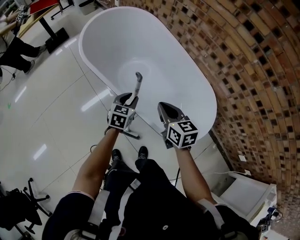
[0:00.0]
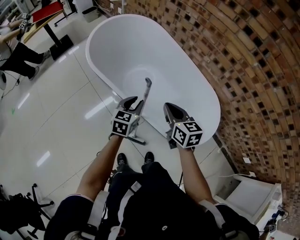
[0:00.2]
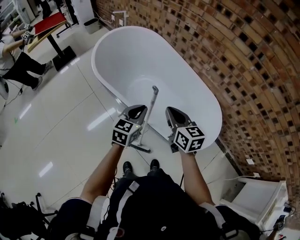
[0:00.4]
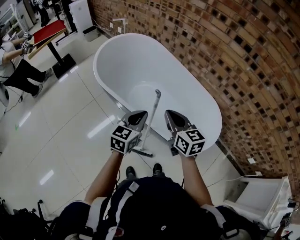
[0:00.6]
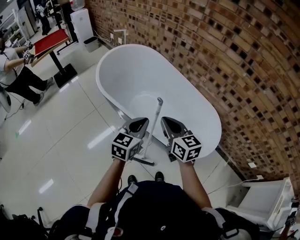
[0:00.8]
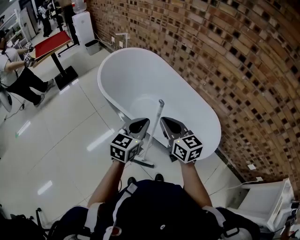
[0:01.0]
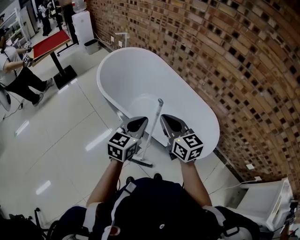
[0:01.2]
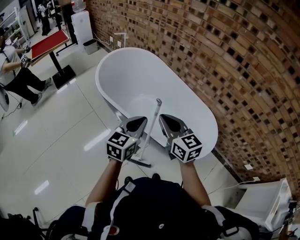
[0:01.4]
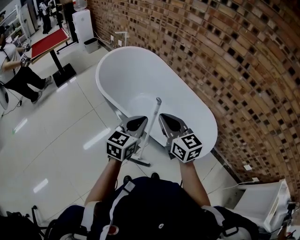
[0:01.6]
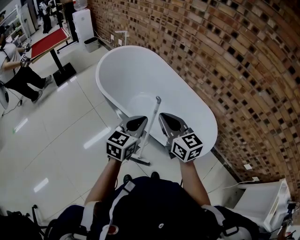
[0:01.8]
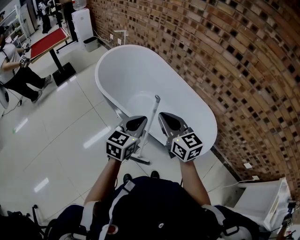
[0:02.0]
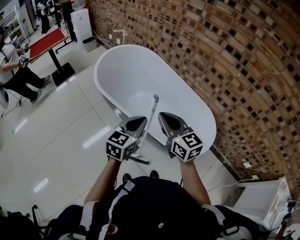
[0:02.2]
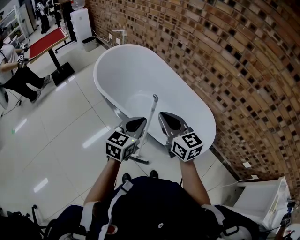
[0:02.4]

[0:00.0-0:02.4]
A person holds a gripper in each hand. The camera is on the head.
0:00.0 to 0:01.2: The right gripper shifts approximately 20 cm upward and to the left, while the left gripper shifts some 25 cm upward and backward, swivels some 30 degrees, and closes.
0:01.2 to 0:02.4: The grippers make only small movements.

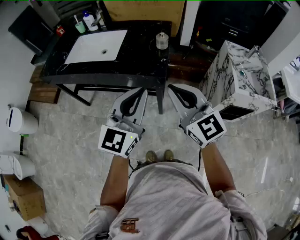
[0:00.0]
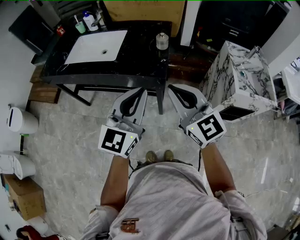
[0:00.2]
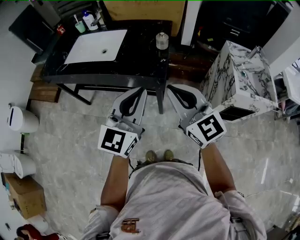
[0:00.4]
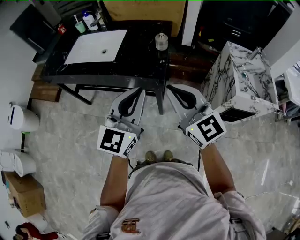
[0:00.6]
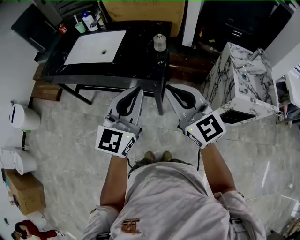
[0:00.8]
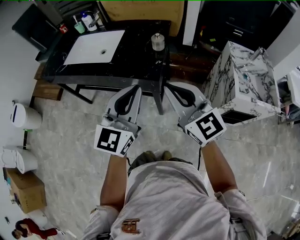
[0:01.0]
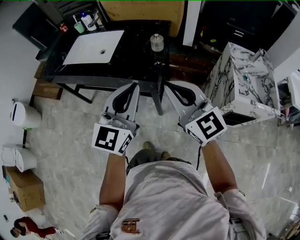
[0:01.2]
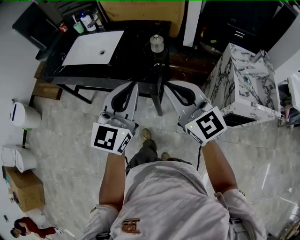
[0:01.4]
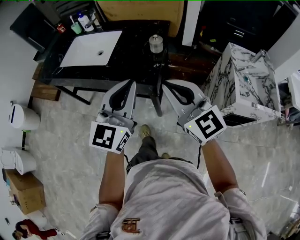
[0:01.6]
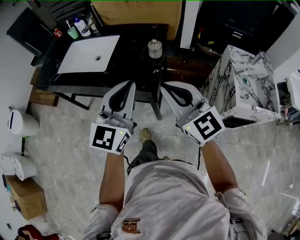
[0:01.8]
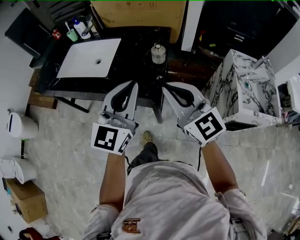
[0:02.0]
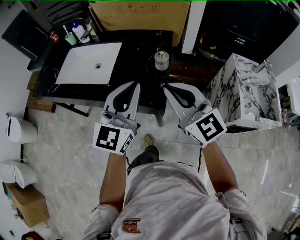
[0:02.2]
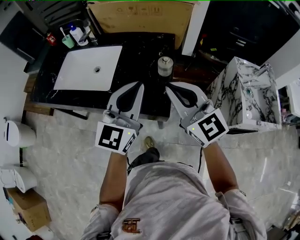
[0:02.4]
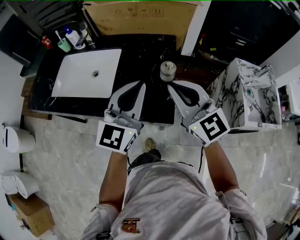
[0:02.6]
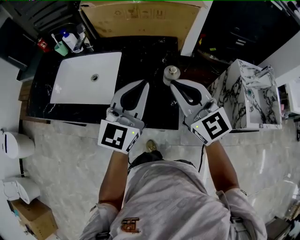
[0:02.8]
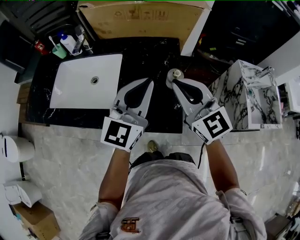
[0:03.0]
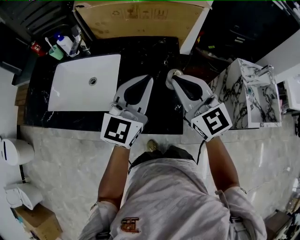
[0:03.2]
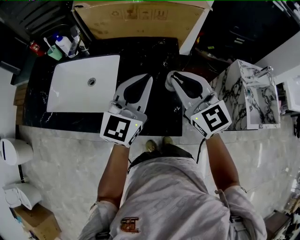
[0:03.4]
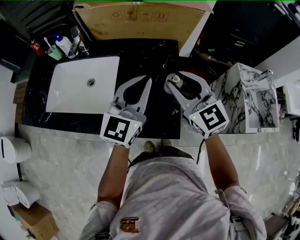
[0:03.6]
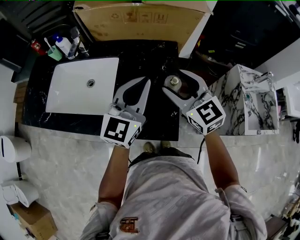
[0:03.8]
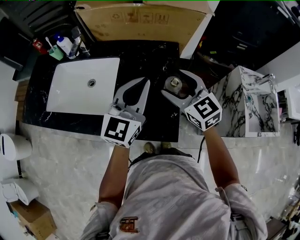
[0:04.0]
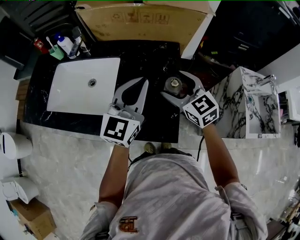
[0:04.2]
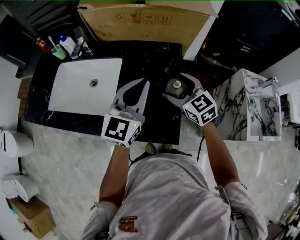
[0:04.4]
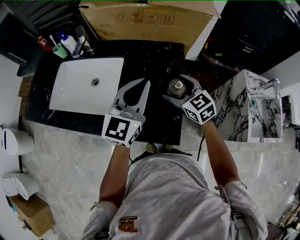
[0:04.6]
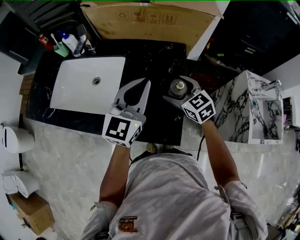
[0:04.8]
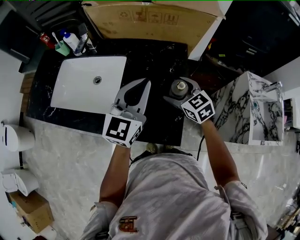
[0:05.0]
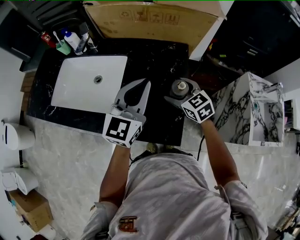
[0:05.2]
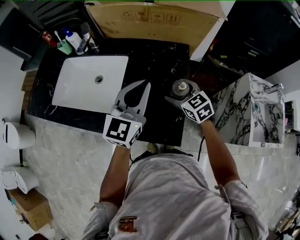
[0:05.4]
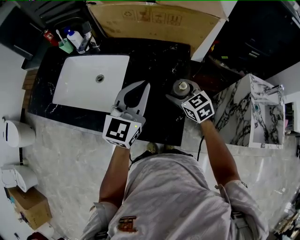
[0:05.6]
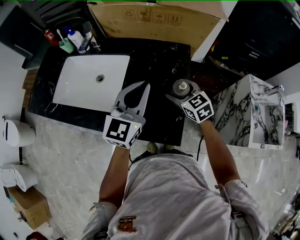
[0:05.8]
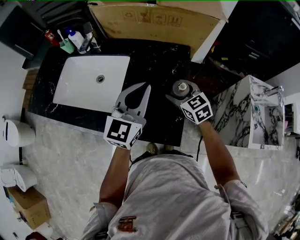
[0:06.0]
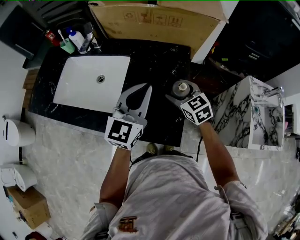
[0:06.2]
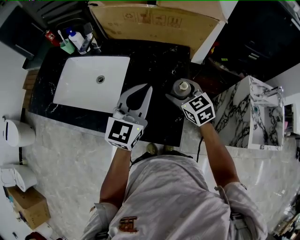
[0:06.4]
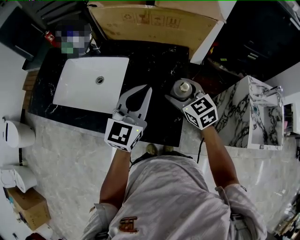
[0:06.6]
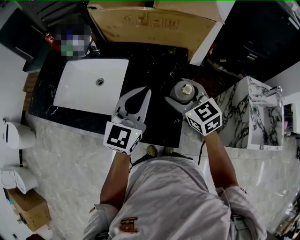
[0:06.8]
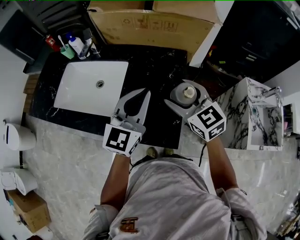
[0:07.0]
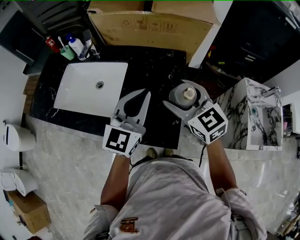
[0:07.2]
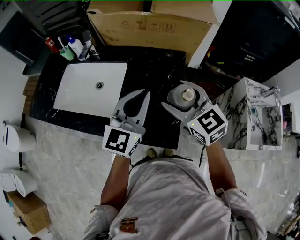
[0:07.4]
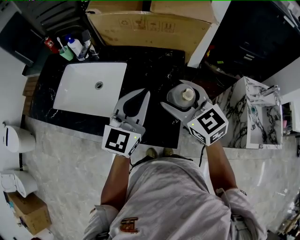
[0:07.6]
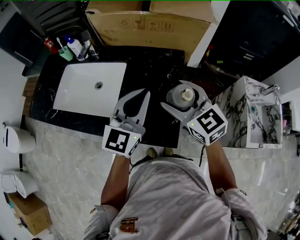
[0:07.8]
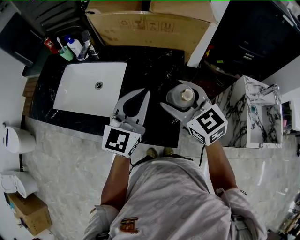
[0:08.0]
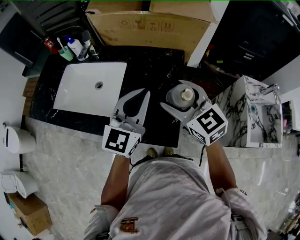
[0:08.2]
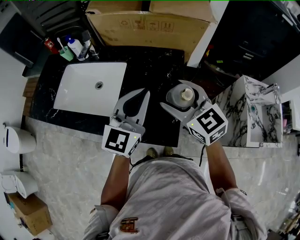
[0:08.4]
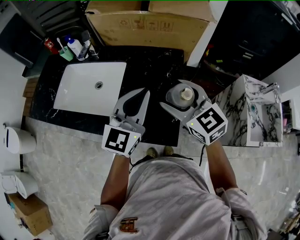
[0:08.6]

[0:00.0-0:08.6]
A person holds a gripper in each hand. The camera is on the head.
0:00.0 to 0:01.4: The left gripper shifts some 5 cm forward, while the right gripper heads to the right, covering roughly 5 cm.
0:01.4 to 0:02.8: The grippers both shift forward by roughly 25 cm.
0:02.8 to 0:04.4: The right gripper travels downward and forward by approximately 20 cm, turns by some 20 degrees, and opens. The left gripper is displaced forward by some 10 cm.
0:04.4 to 0:05.8: The right gripper heads downward, covering roughly 5 cm.
0:05.8 to 0:07.2: The right gripper shifts about 15 cm upward.
0:07.2 to 0:08.6: The grippers stay close to where they were, moving slightly.

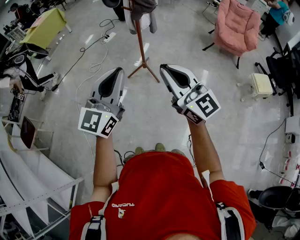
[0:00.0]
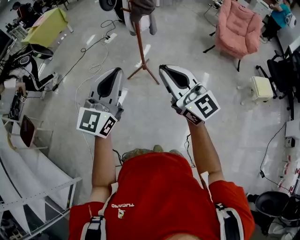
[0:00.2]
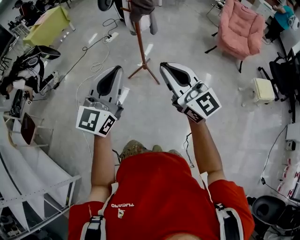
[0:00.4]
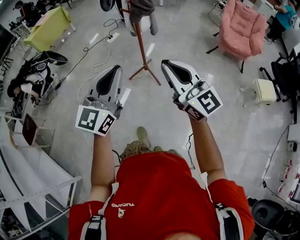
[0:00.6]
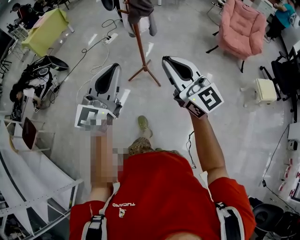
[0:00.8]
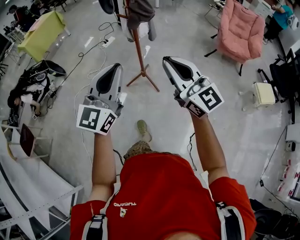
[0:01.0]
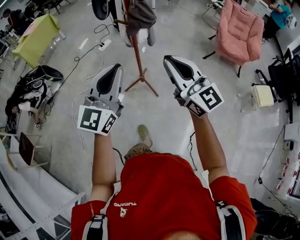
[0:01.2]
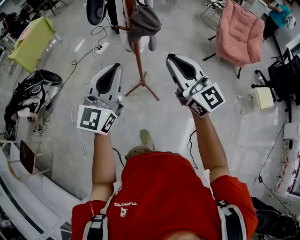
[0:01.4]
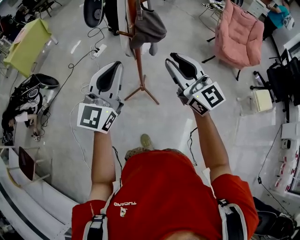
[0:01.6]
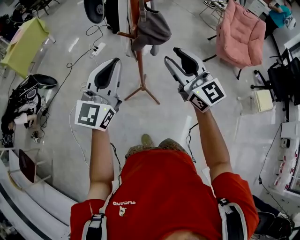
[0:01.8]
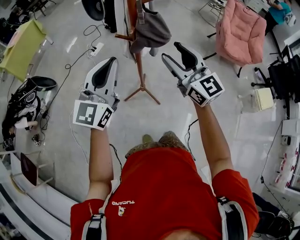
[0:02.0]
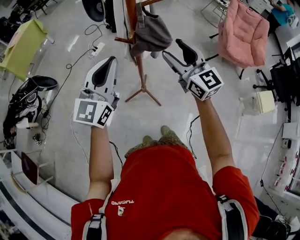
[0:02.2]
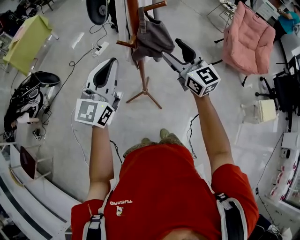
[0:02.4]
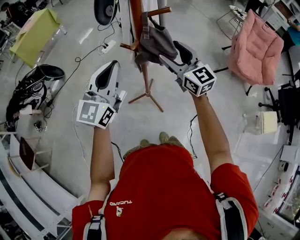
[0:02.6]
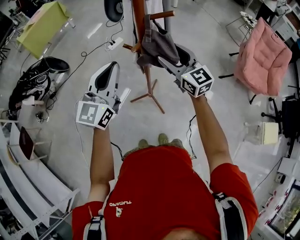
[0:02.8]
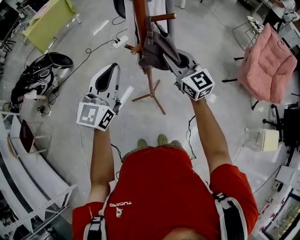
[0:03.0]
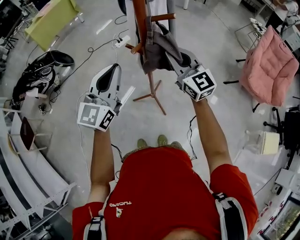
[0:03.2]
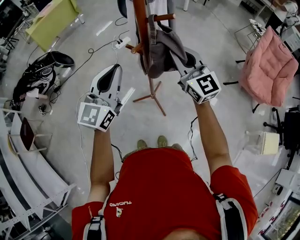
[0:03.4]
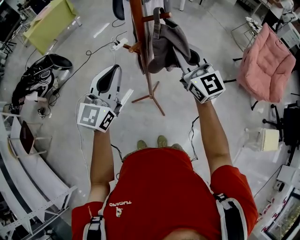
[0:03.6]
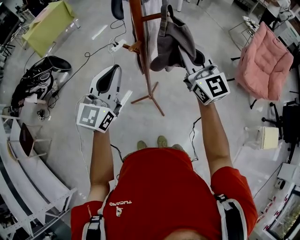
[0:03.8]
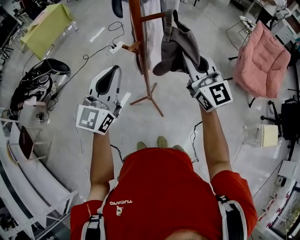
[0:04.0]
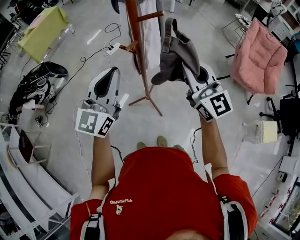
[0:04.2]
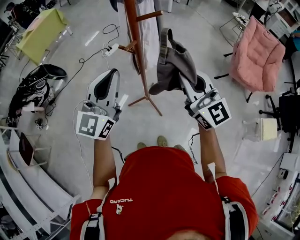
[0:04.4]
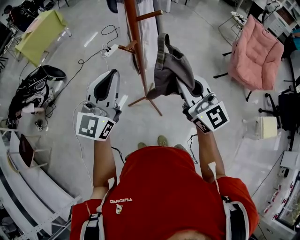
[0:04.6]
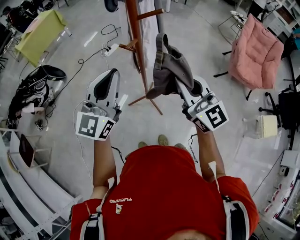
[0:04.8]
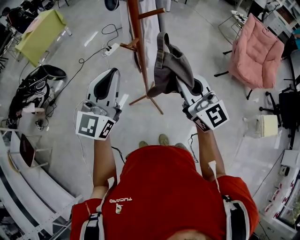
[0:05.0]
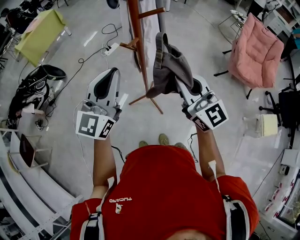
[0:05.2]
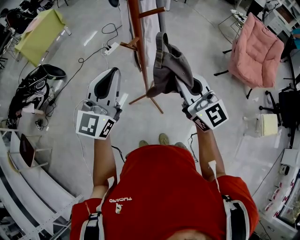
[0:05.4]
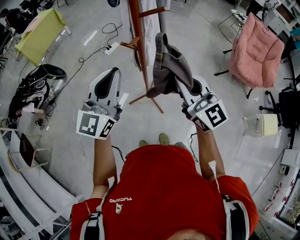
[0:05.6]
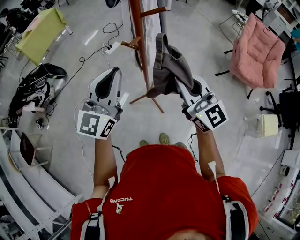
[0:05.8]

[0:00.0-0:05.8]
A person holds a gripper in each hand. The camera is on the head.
0:00.0 to 0:01.4: Both grippers move forward, approximately 30 cm.
0:01.4 to 0:02.8: Both grippers move forward, roughly 25 cm. The right gripper opens up.
0:02.8 to 0:04.4: The left gripper goes about 5 cm backward. Meanwhile the right gripper is displaced backward and upward by roughly 15 cm, and closes up.
0:04.4 to 0:05.8: The grippers stay close to where they were, moving slightly.

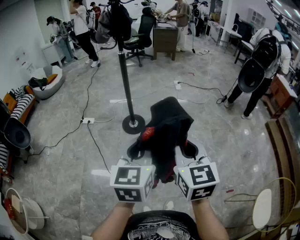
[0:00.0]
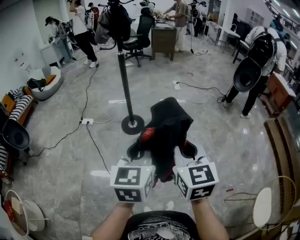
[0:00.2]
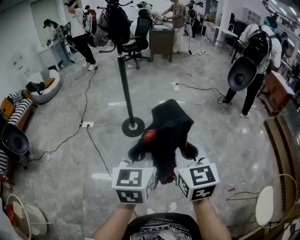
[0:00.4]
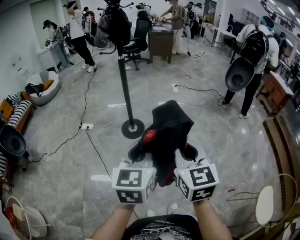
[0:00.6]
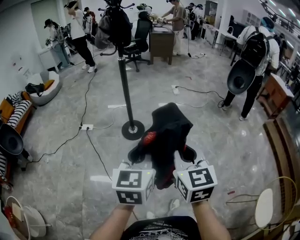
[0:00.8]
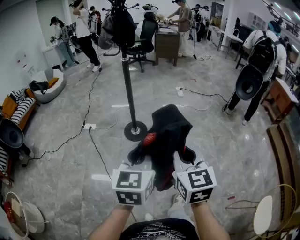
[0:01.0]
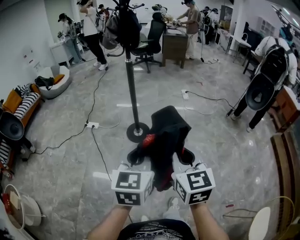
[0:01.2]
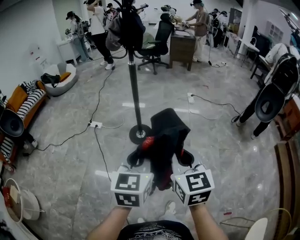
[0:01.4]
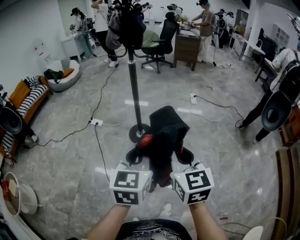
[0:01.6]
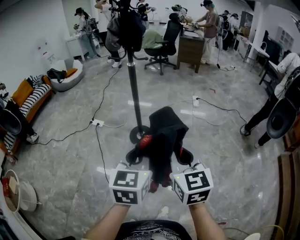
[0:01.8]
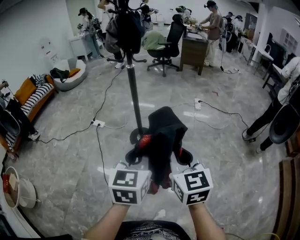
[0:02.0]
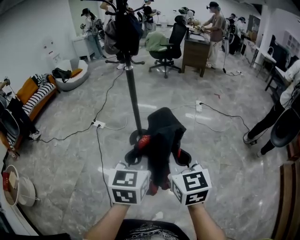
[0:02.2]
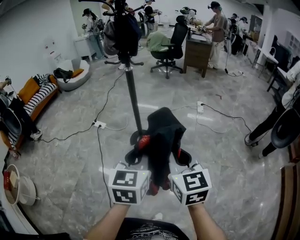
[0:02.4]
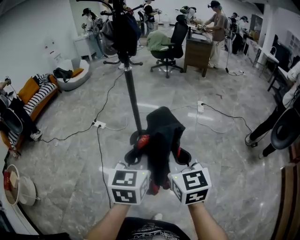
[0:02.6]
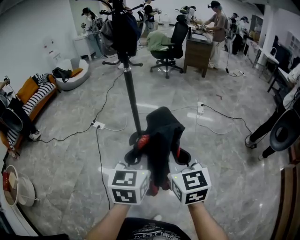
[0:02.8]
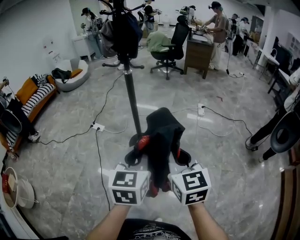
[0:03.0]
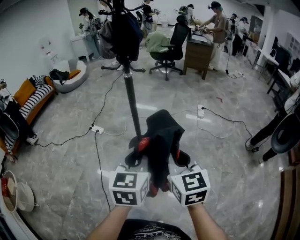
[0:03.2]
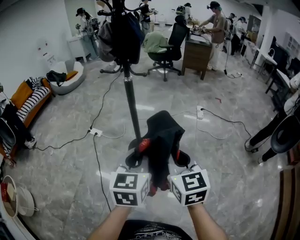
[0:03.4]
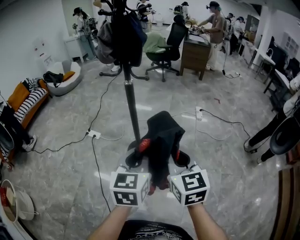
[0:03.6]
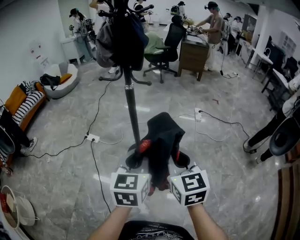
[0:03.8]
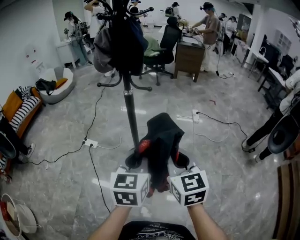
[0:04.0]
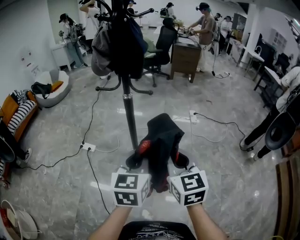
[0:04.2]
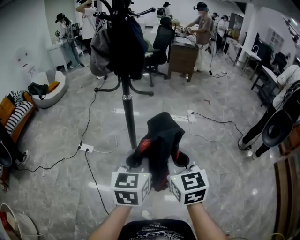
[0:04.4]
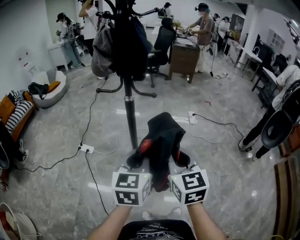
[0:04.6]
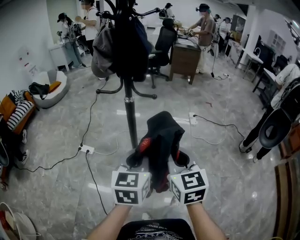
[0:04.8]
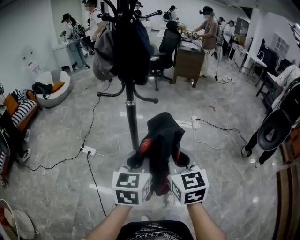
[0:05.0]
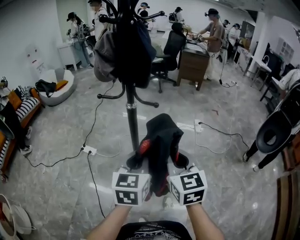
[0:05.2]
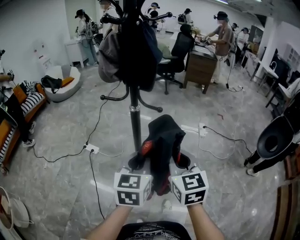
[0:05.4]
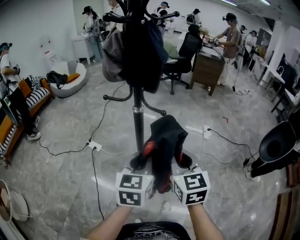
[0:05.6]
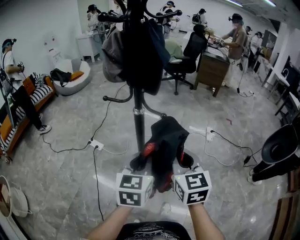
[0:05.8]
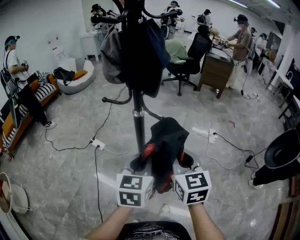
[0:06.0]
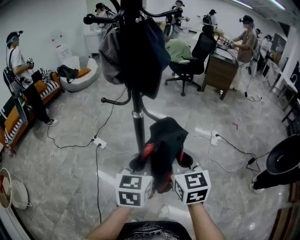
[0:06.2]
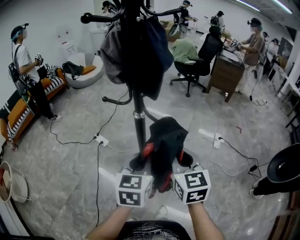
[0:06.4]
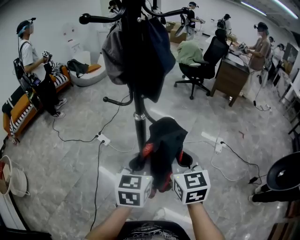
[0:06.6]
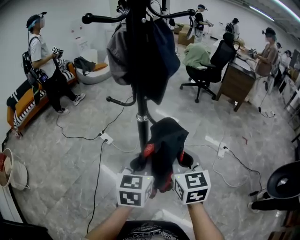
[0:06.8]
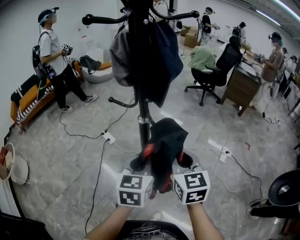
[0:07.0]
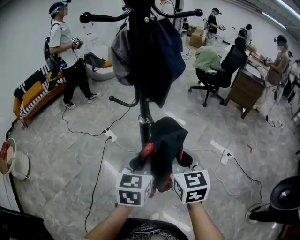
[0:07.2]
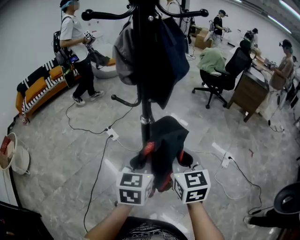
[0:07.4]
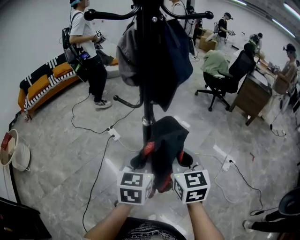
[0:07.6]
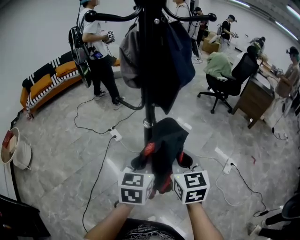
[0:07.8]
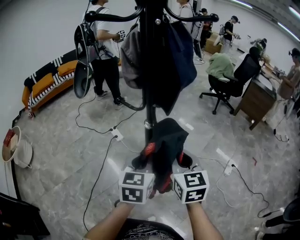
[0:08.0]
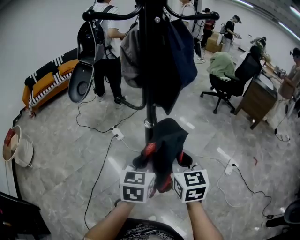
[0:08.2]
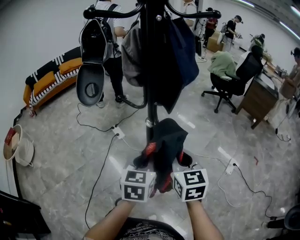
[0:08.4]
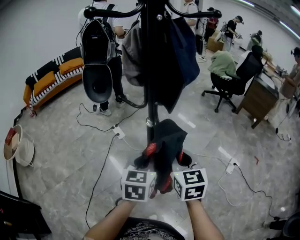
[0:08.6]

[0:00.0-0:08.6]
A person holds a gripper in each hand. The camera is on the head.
0:00.0 to 0:01.4: Both grippers move forward, approximately 10 cm.
0:01.4 to 0:02.8: The two grippers go roughly 20 cm forward and to the right.
0:02.8 to 0:04.4: Both grippers travel together forward and to the left, roughly 25 cm.
0:04.4 to 0:05.8: The grippers both shift forward by roughly 10 cm.
0:05.8 to 0:07.2: The grippers both shift forward by roughly 10 cm.
0:07.2 to 0:08.6: The right gripper shifts by some 5 cm.
